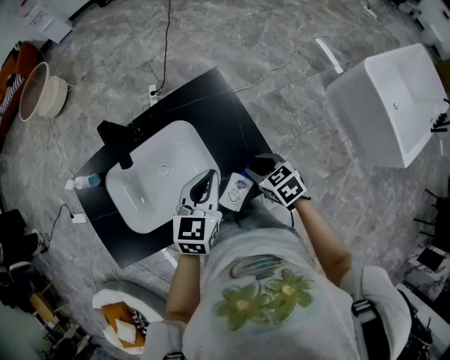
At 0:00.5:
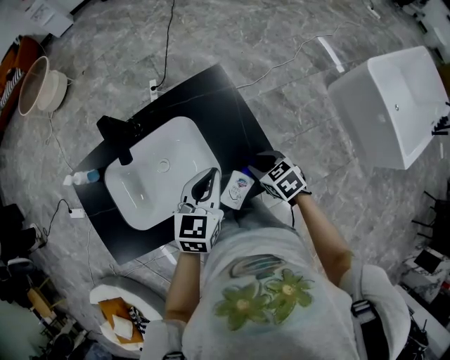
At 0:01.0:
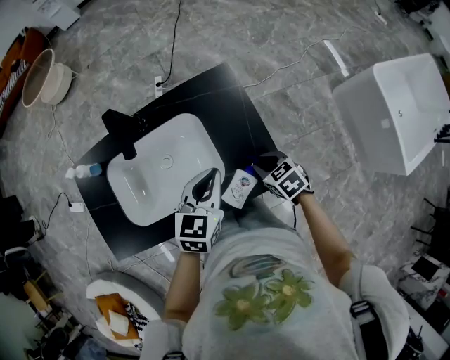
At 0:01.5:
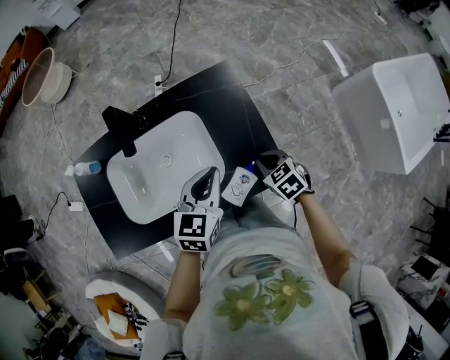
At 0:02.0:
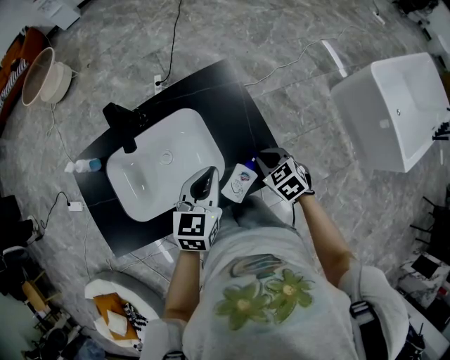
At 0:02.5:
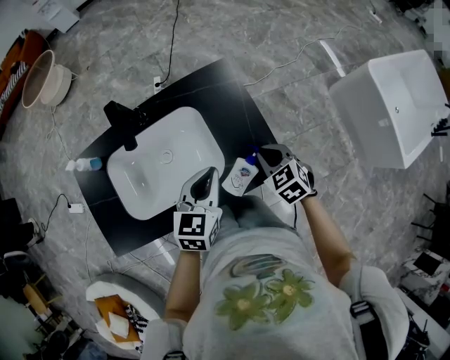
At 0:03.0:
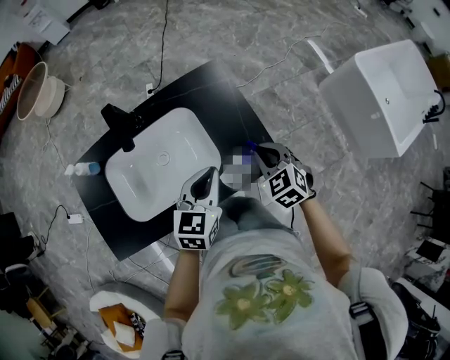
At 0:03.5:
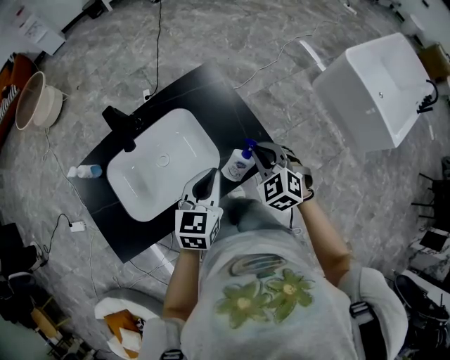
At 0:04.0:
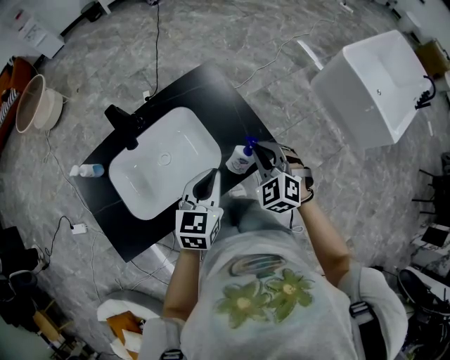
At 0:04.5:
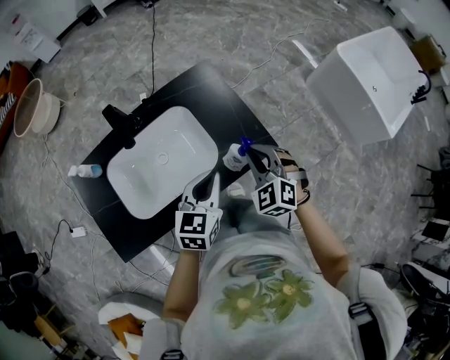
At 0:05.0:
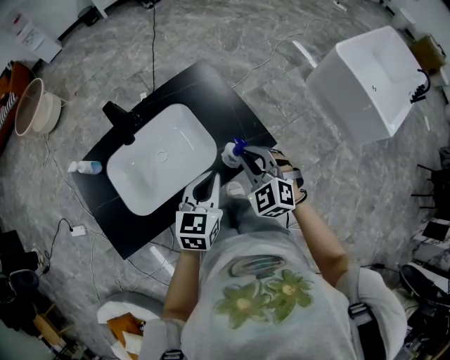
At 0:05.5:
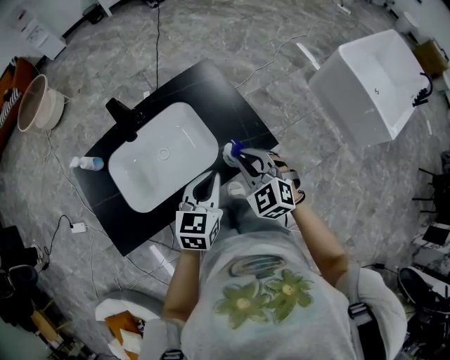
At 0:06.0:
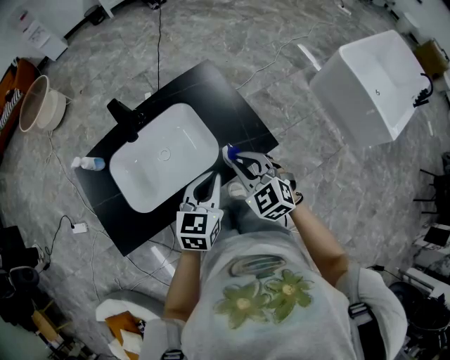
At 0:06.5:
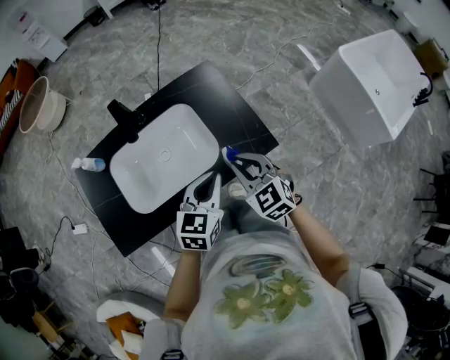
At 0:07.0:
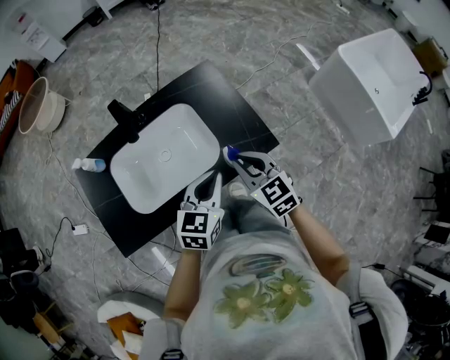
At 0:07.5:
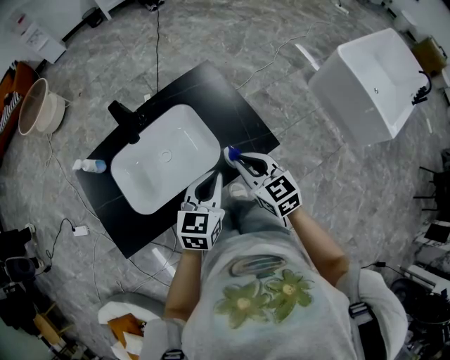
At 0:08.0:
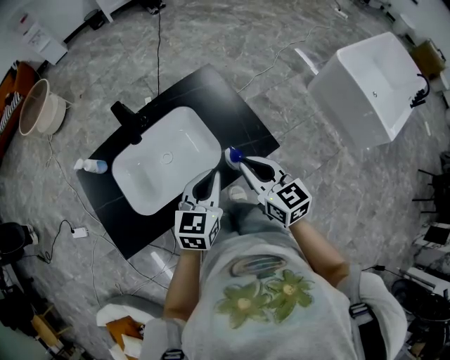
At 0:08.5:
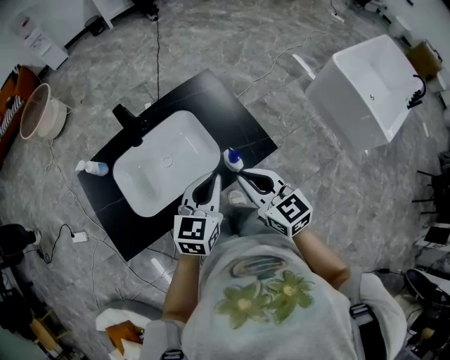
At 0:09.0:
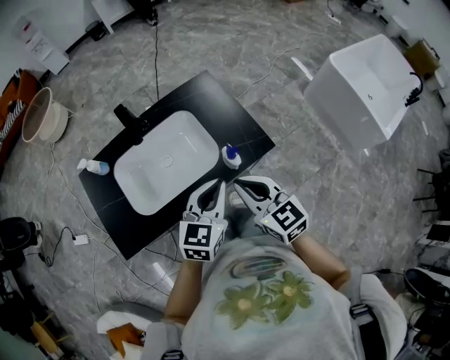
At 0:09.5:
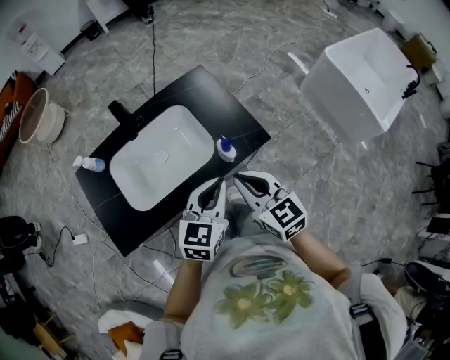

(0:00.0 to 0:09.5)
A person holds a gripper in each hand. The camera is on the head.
0:00.0 - 0:02.0: There are only small adjustments of the grippers.
0:02.0 - 0:04.0: The right gripper is displaced upward and backward by about 15 cm, and rotates approximately 30 degrees; the left gripper heads backward, covering approximately 10 cm.
0:04.0 - 0:05.5: The right gripper is displaced backward by roughly 5 cm.
0:05.5 - 0:07.5: The right gripper changes its angle by about 40 degrees.
0:07.5 - 0:09.5: The left gripper shifts about 10 cm backward; the right gripper travels backward and upward by approximately 10 cm.

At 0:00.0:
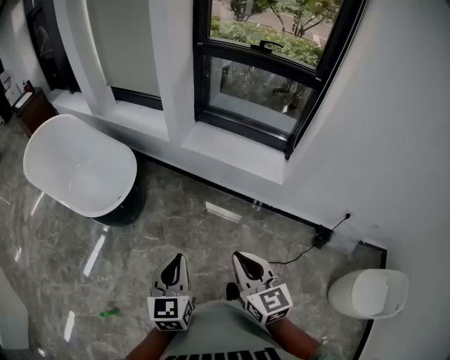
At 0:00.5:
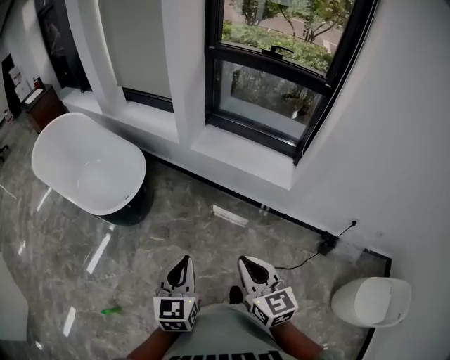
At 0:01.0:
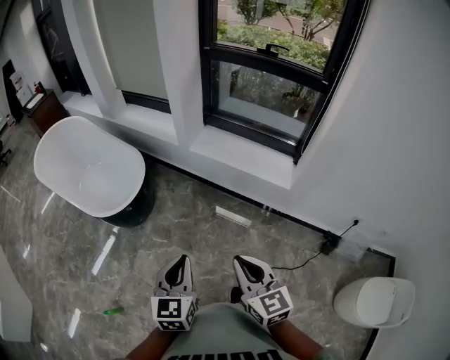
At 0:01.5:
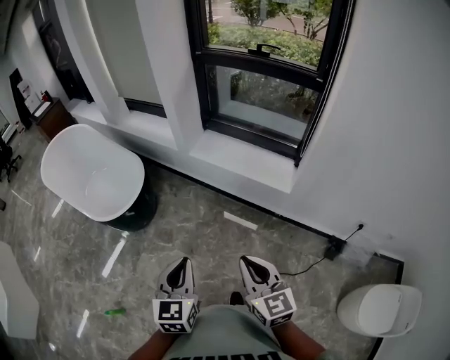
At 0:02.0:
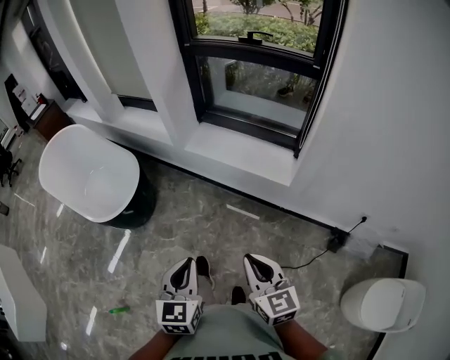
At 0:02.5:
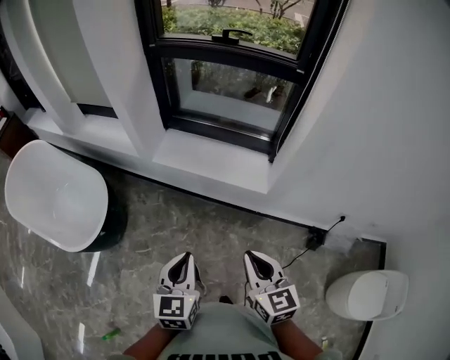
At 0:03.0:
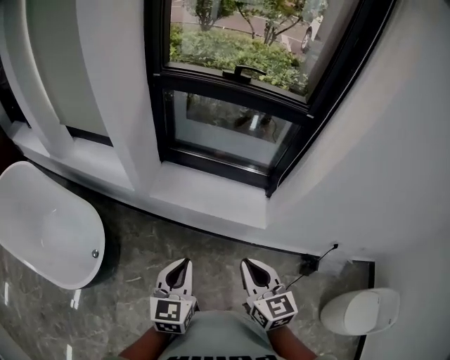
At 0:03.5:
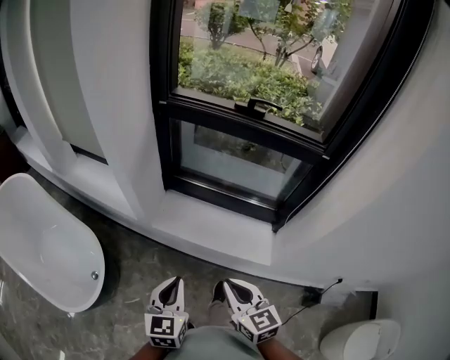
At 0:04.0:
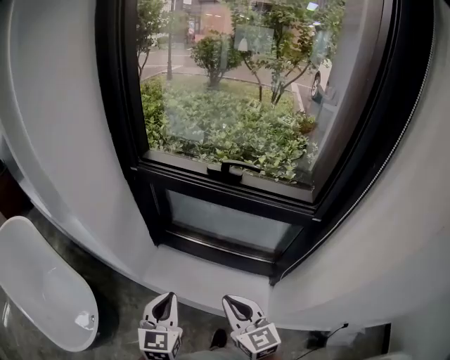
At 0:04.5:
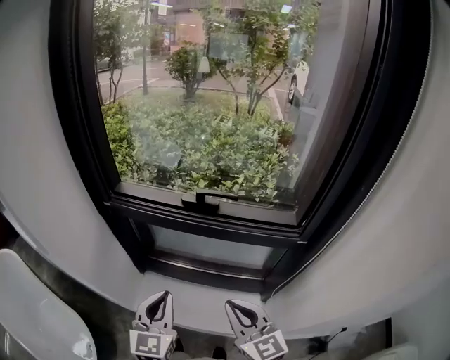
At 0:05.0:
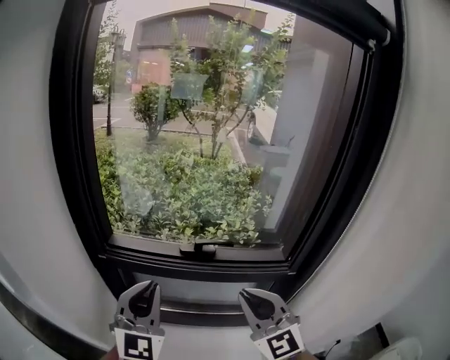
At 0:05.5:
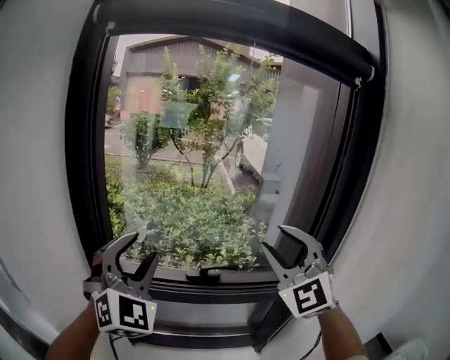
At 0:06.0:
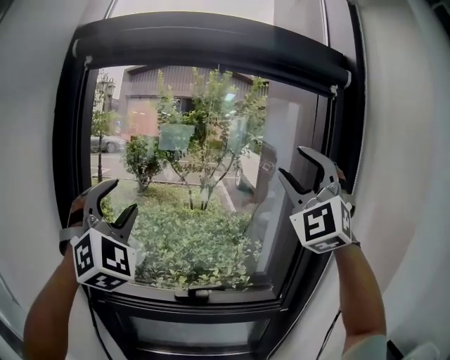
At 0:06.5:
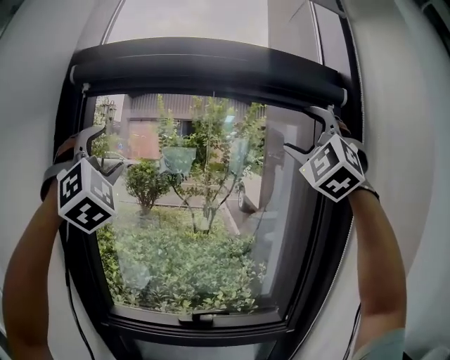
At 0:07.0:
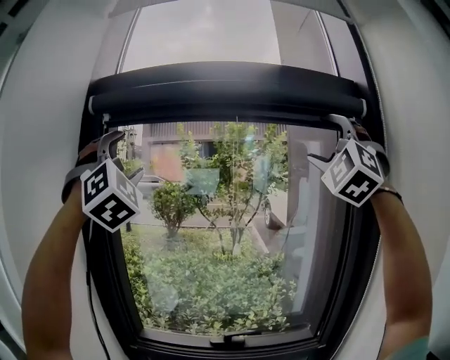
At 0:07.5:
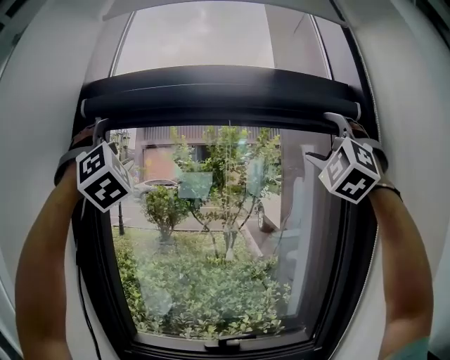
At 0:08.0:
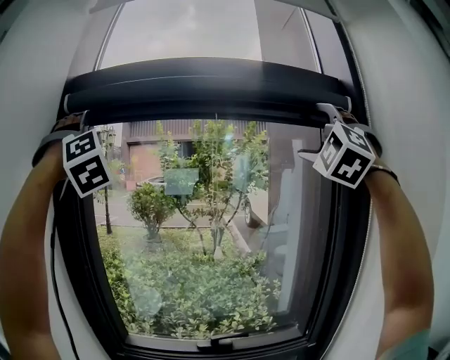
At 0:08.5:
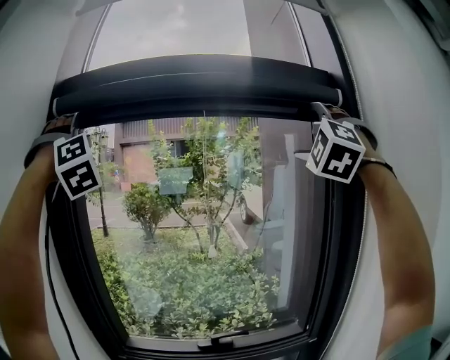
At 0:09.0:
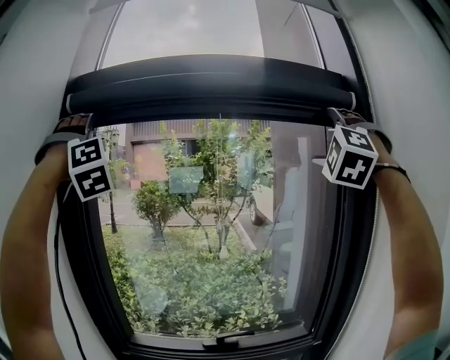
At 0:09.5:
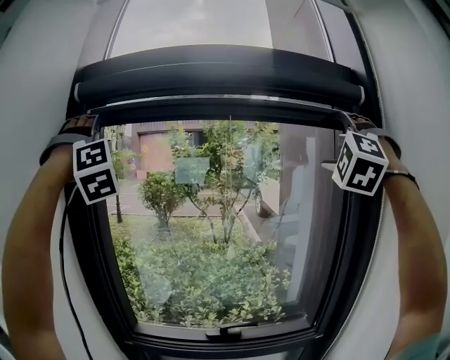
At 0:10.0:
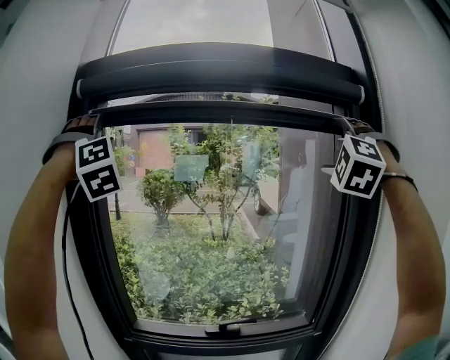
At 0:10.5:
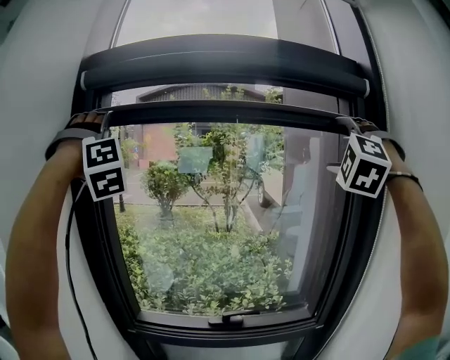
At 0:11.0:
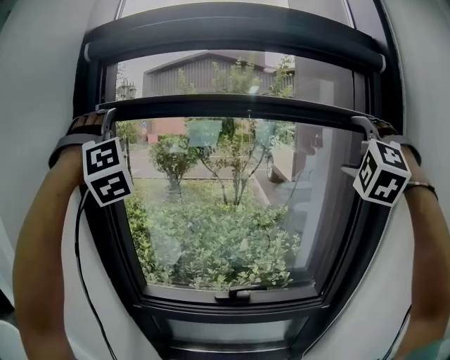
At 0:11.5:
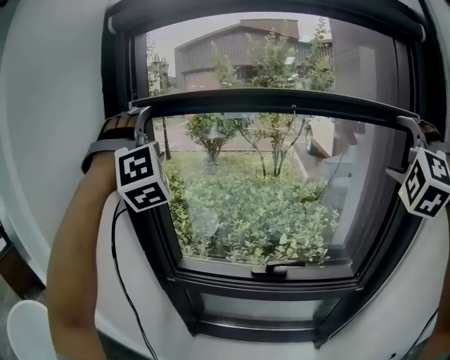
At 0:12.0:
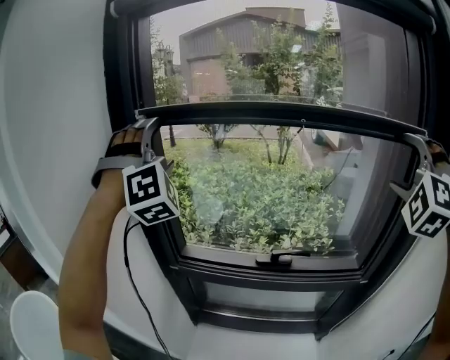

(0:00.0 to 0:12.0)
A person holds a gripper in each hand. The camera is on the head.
0:00.0 - 0:02.0: Both grippers move to the right, about 15 cm.
0:02.0 - 0:04.0: The two grippers travel together, forward, about 60 cm.
0:04.0 - 0:06.0: The left gripper is displaced upward and forward by roughly 60 cm, twists approximately 60 degrees clockwise, seen from behind, and opens; the right gripper heads upward, covering about 60 cm, rotates around the line of its fingers by about 80 degrees, counterclockwise from behind, and opens.
0:06.0 - 0:08.0: The right gripper moves upward, some 15 cm, rotates approximately 20 degrees, and opens up; the left gripper shifts about 25 cm upward, and changes its angle by approximately 30 degrees.
0:08.0 - 0:10.0: The right gripper goes roughly 5 cm downward.
0:10.0 - 0:12.0: The two grippers go approximately 20 cm downward.

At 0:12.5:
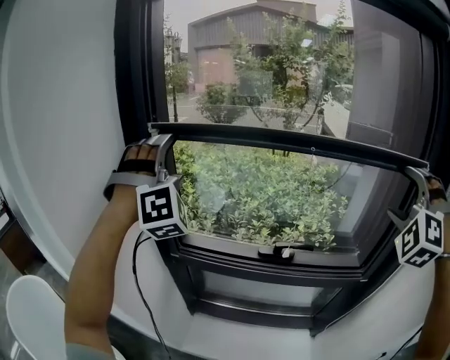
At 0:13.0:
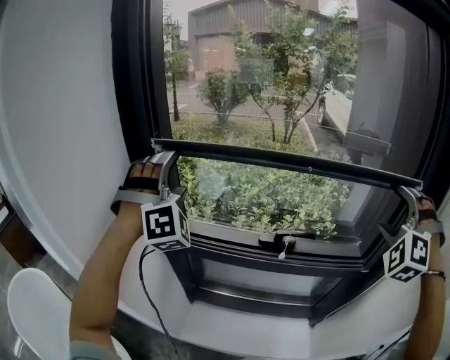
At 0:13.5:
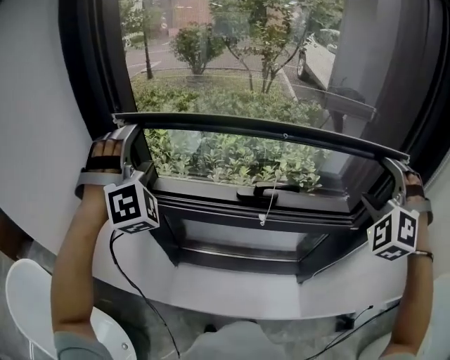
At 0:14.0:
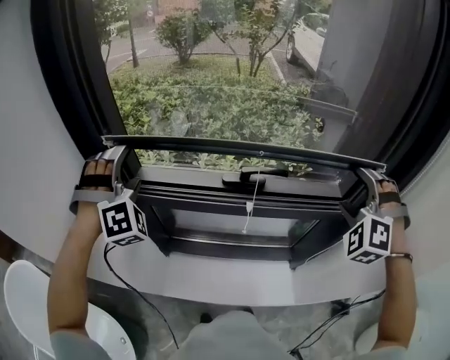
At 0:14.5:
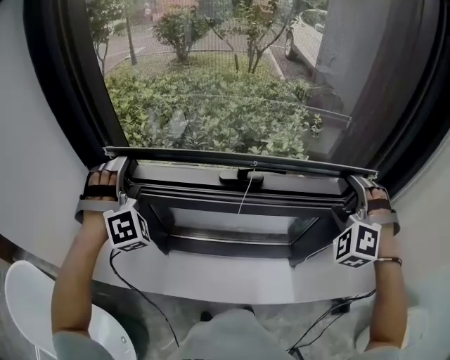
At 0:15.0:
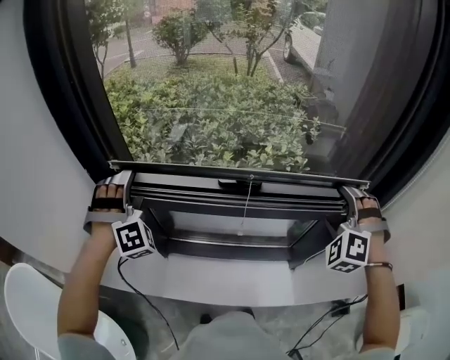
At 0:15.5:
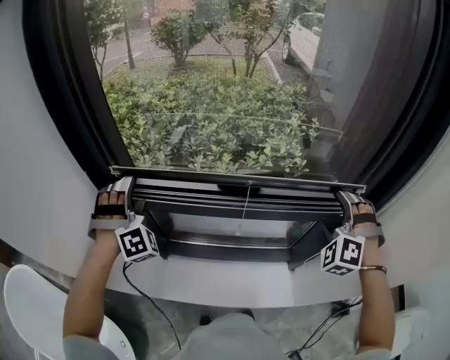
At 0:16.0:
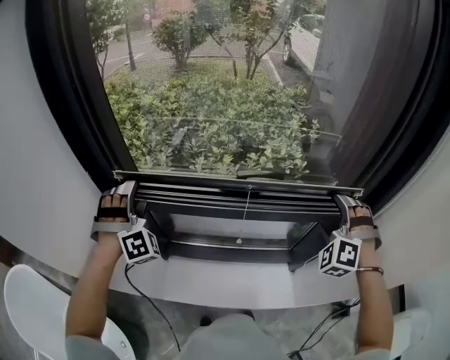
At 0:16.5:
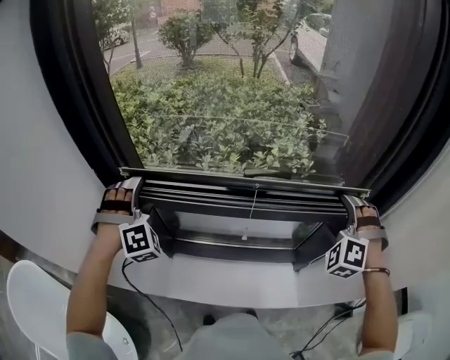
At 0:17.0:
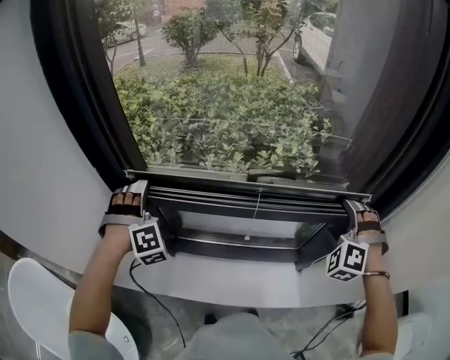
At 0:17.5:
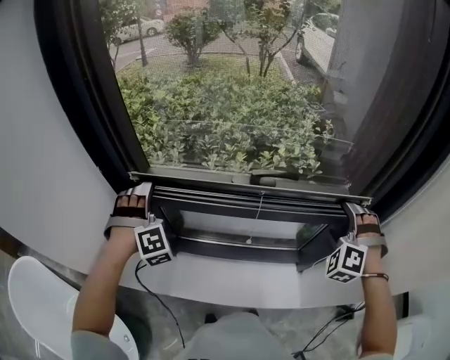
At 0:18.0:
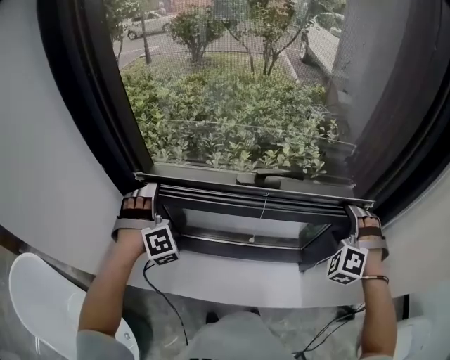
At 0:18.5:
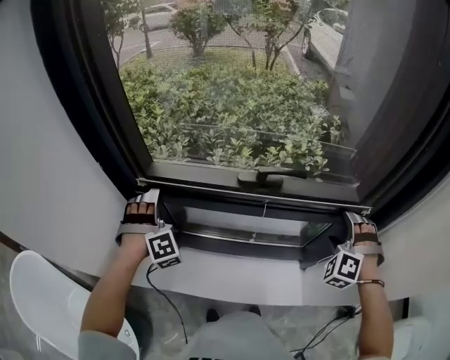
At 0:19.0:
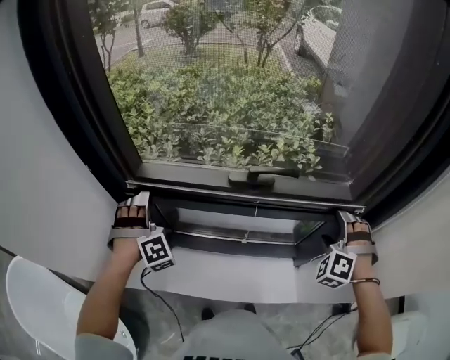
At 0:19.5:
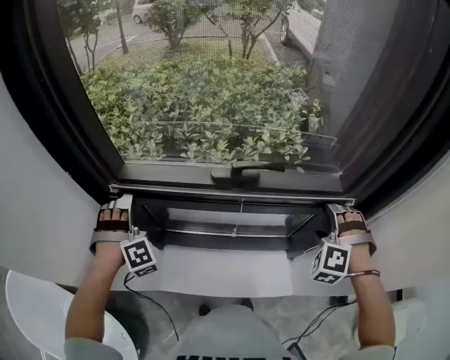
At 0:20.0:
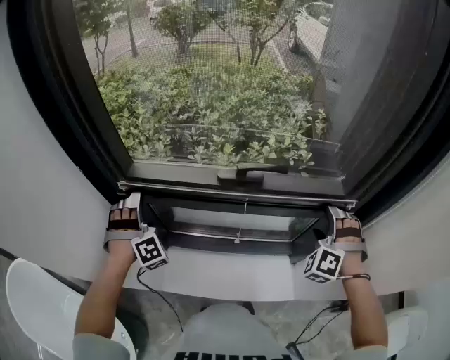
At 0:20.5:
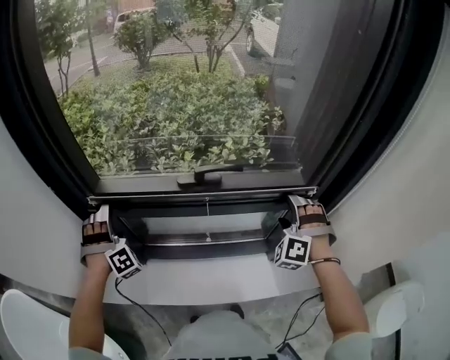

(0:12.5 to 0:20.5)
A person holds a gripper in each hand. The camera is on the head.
0:12.5 - 0:14.5: The two grippers go about 25 cm downward.
0:14.5 - 0:16.5: Both grippers travel together downward, some 5 cm.
0:16.5 - 0:18.5: The two grippers go roughly 10 cm downward.
0:18.5 - 0:20.5: The grippers move only a little.
